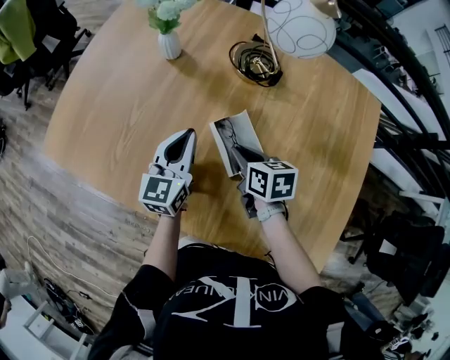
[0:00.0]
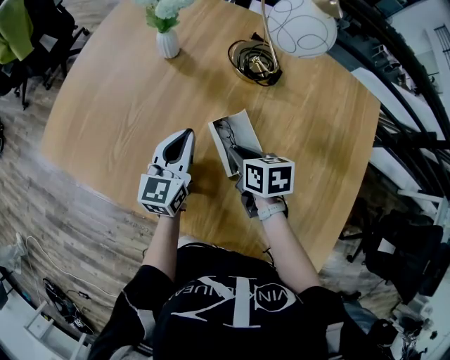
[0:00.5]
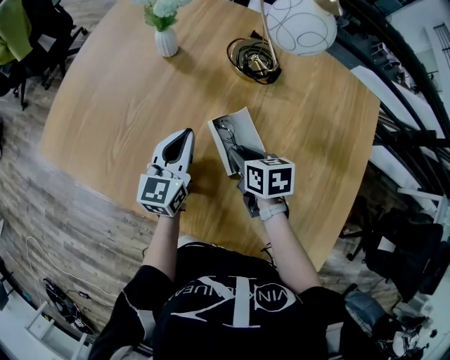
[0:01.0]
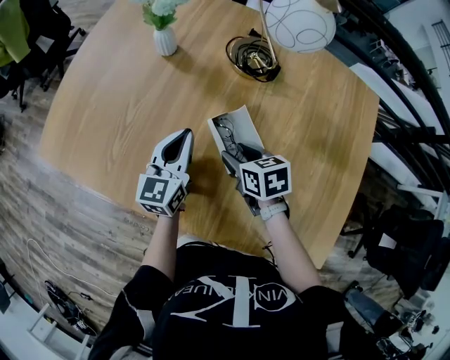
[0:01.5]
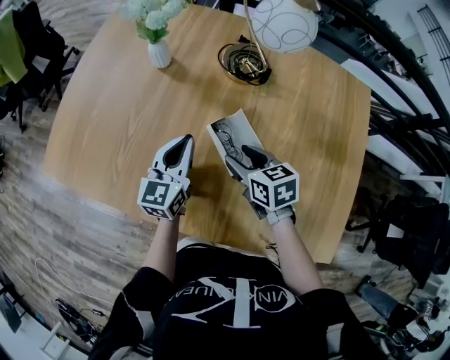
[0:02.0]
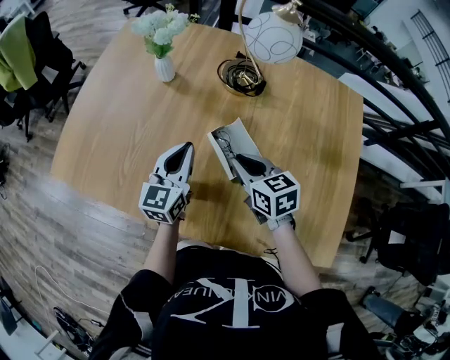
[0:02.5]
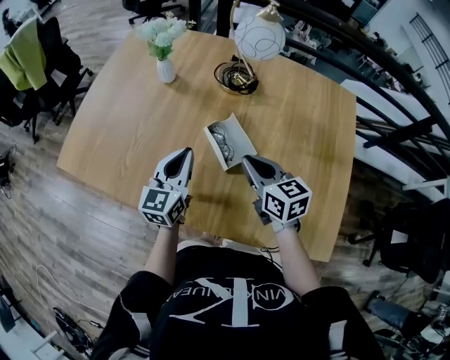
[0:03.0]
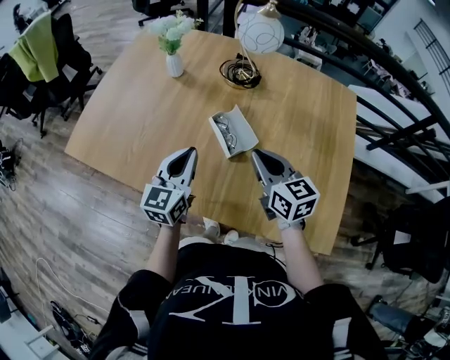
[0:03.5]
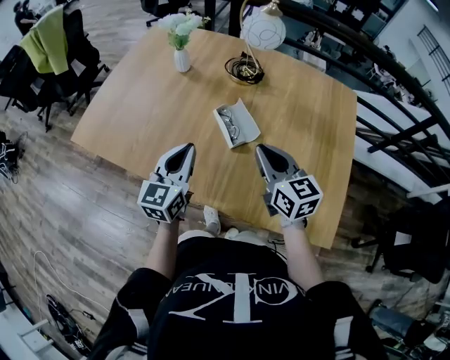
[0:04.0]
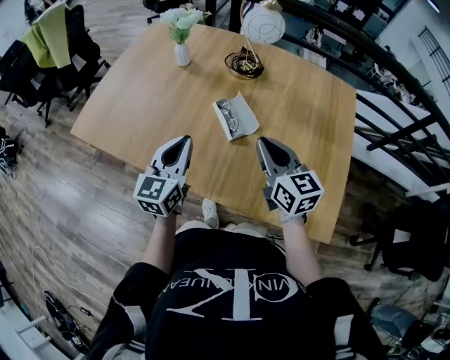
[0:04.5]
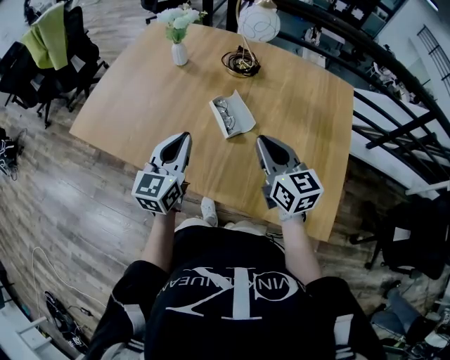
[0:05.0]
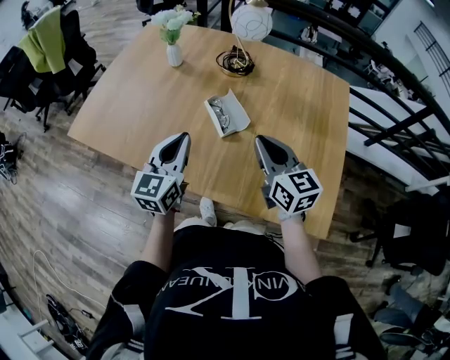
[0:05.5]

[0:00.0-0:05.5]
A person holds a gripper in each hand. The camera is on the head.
0:00.0 to 0:02.0: The right gripper opens up.
0:02.0 to 0:03.5: The right gripper shifts some 15 cm upward and backward, swivels about 30 degrees, and closes its fingers, while the left gripper travels backward and upward by about 15 cm.
0:03.5 to 0:05.5: Both grippers travel together backward, about 5 cm.

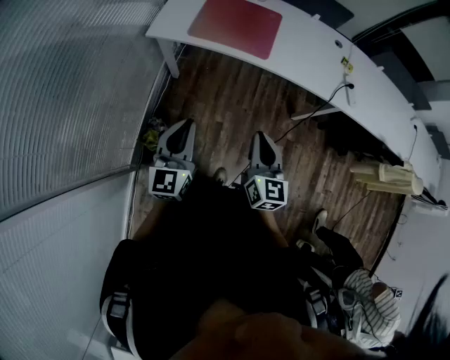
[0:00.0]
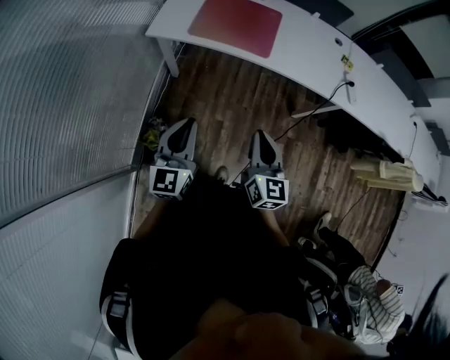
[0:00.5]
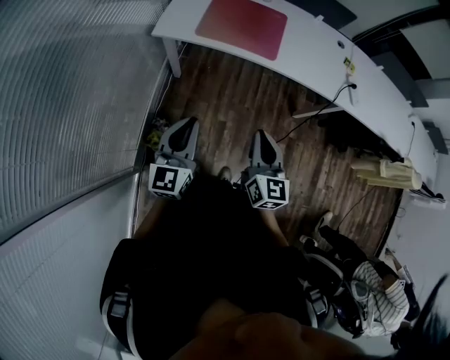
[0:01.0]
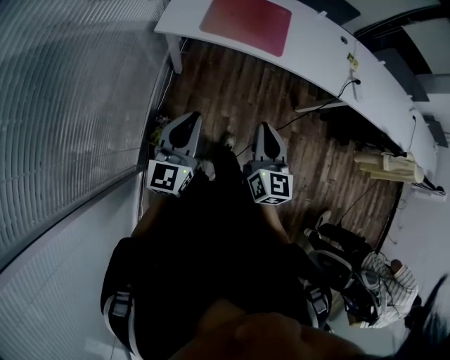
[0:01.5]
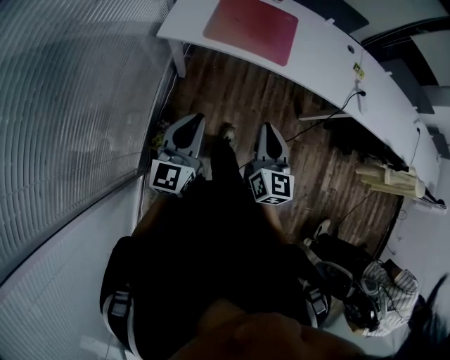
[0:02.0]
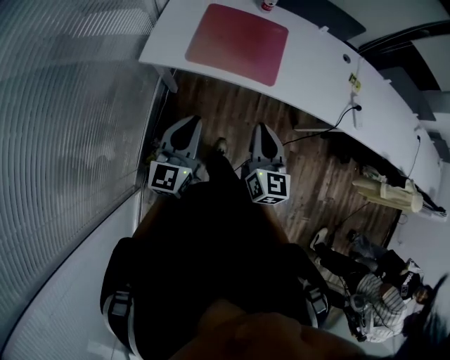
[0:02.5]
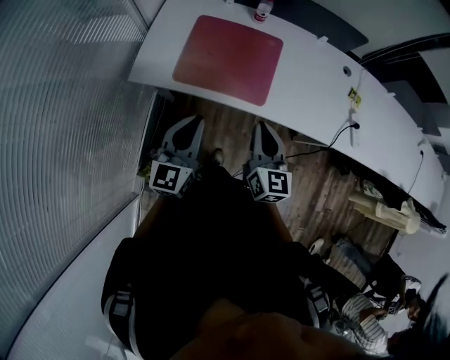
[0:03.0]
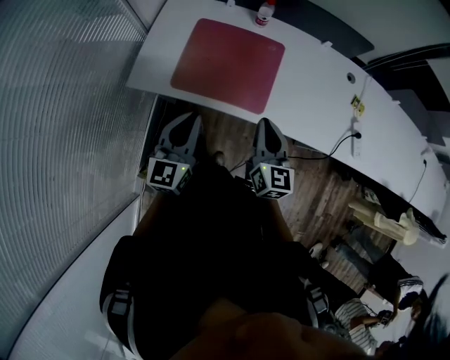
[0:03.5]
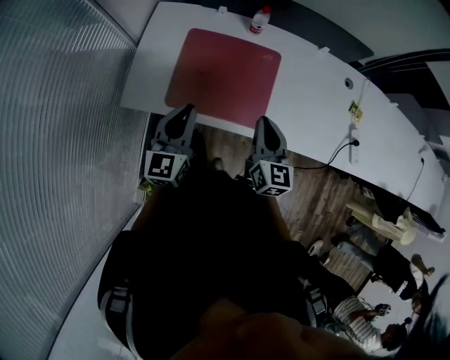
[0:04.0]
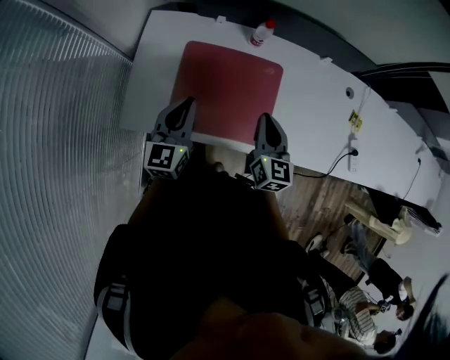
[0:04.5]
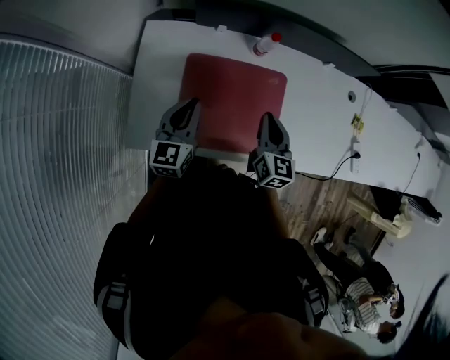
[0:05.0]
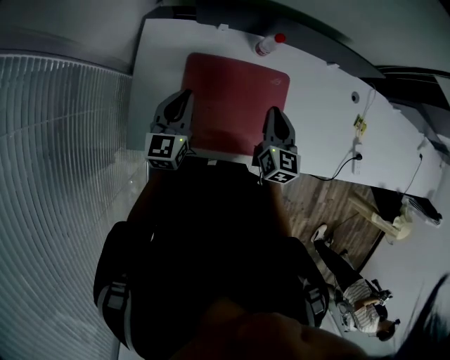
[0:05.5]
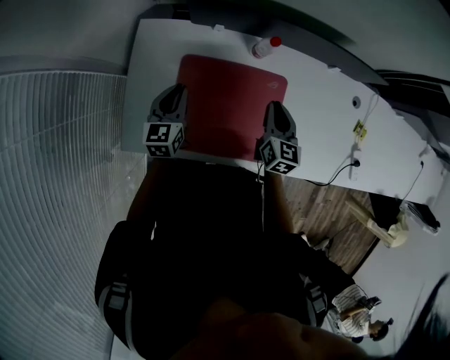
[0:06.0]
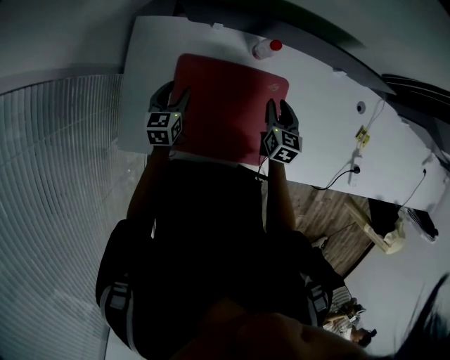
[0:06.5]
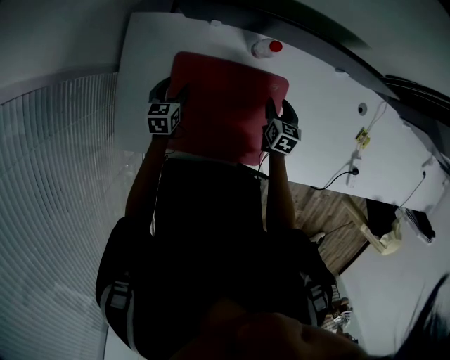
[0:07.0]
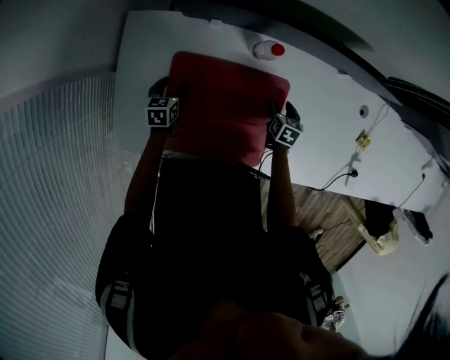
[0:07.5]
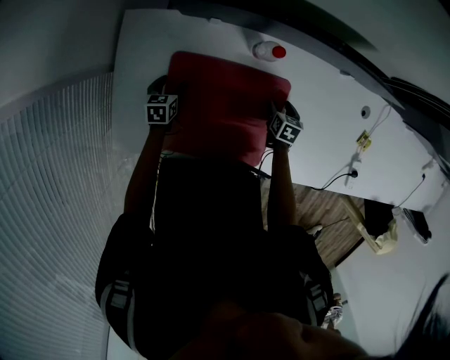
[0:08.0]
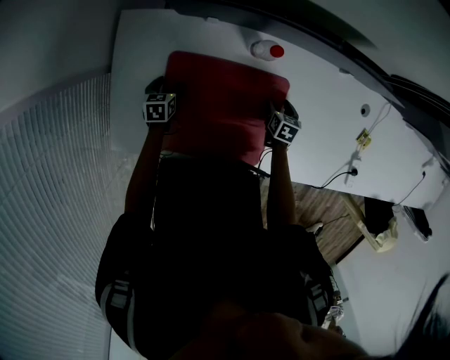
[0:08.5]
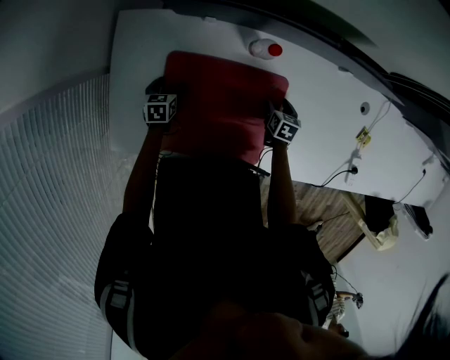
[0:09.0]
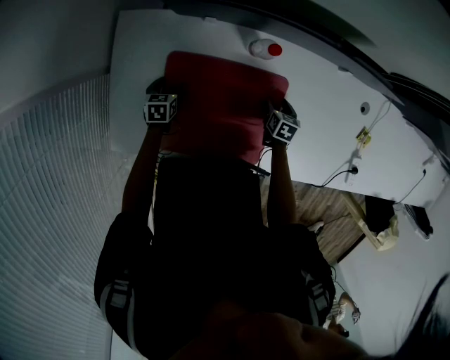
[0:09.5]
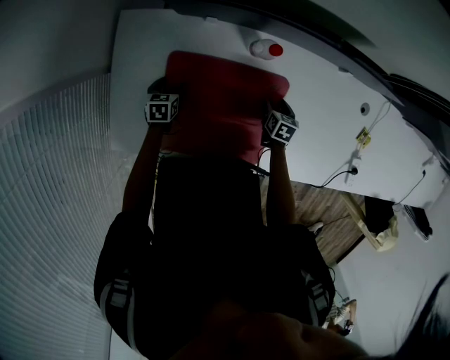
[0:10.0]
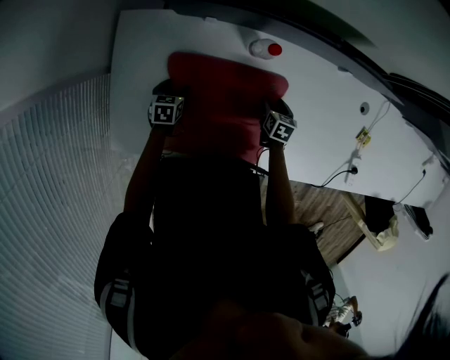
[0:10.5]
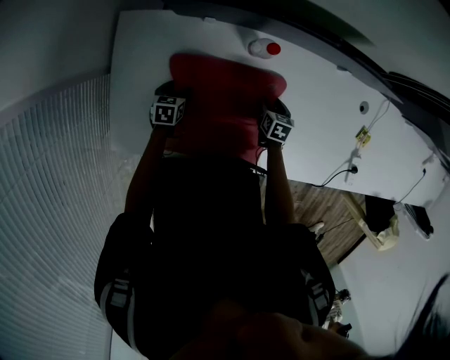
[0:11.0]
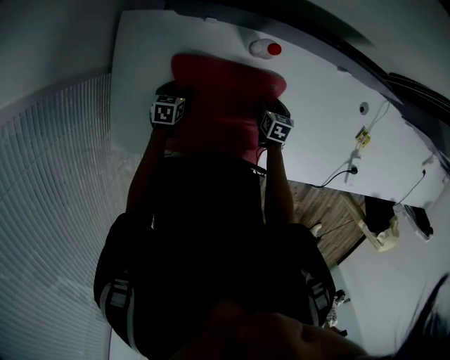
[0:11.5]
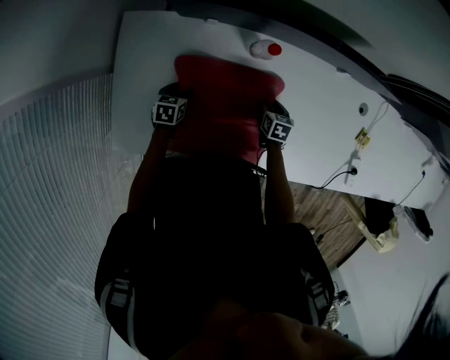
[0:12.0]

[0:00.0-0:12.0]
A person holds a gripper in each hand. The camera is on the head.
0:00.0 to 0:02.0: The grippers both shift to the left and forward by approximately 10 cm.
0:02.0 to 0:04.0: The two grippers travel together, forward, about 40 cm.
0:04.0 to 0:06.0: The left gripper moves forward and downward, roughly 30 cm. Meanwhile the right gripper moves forward, approximately 25 cm.
0:06.0 to 0:08.0: The two grippers go roughly 25 cm downward. The left gripper tilts its fingers roughly 30 degrees downward, and opens its fingers. Meanwhile the right gripper tilts its fingers approximately 40 degrees downward, and opens its fingers.
0:08.0 to 0:12.0: The grippers make only small movements.

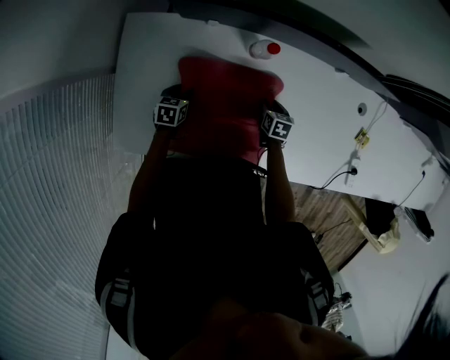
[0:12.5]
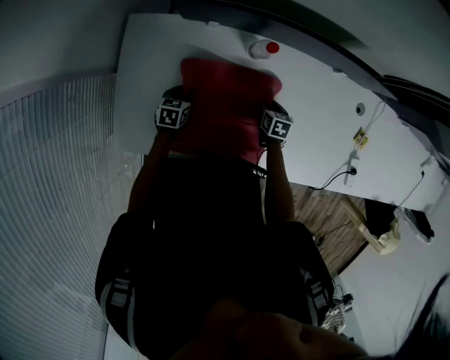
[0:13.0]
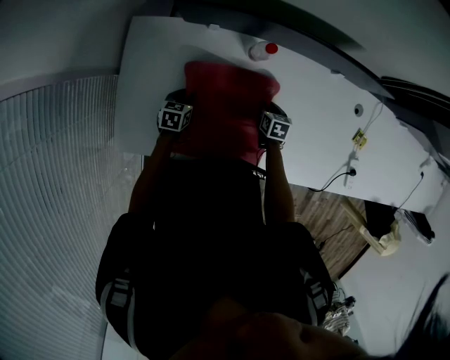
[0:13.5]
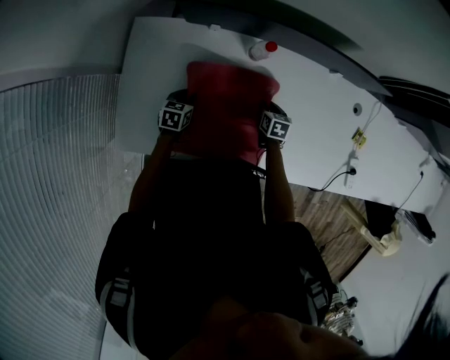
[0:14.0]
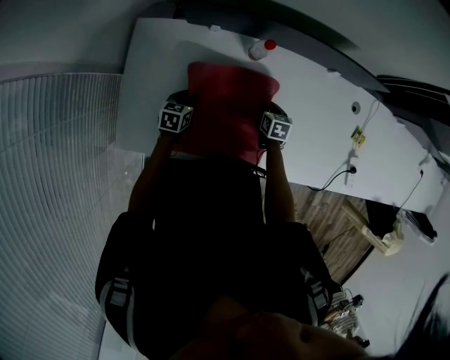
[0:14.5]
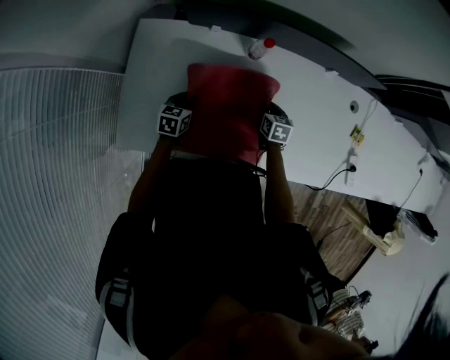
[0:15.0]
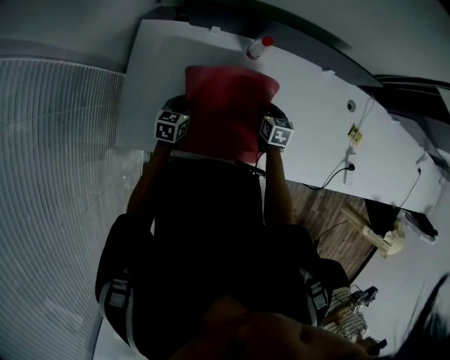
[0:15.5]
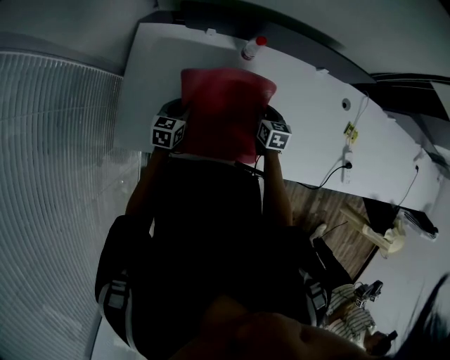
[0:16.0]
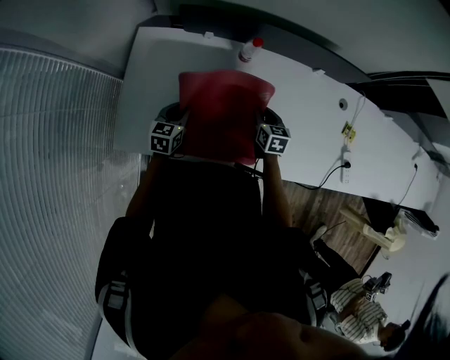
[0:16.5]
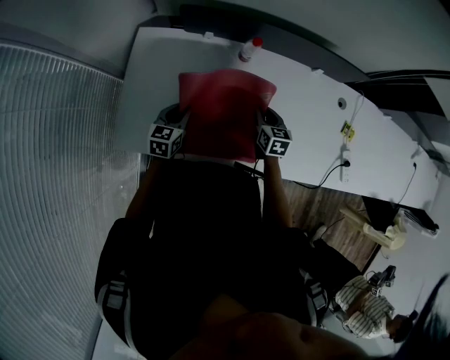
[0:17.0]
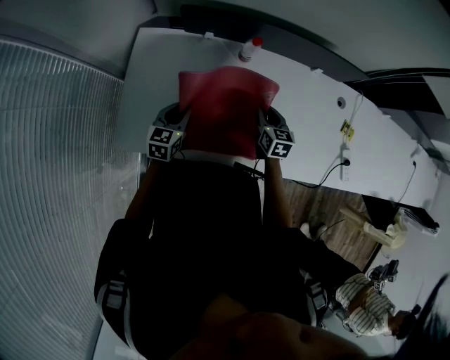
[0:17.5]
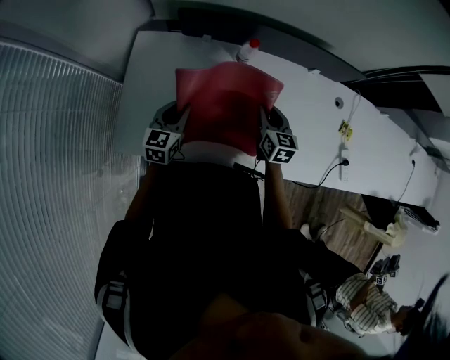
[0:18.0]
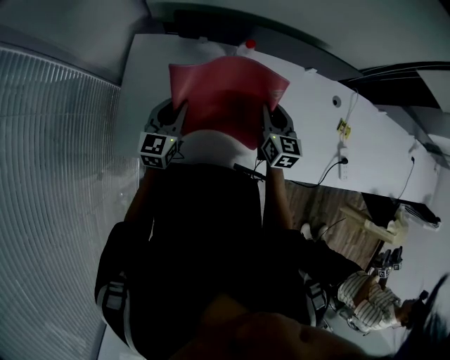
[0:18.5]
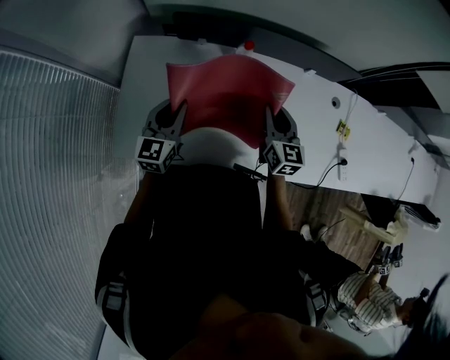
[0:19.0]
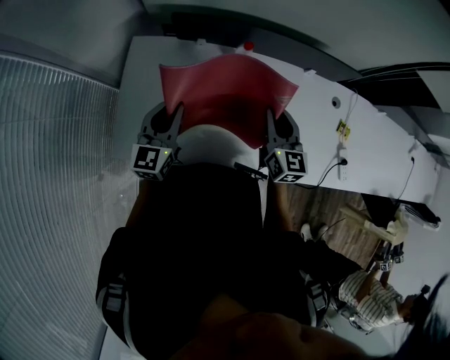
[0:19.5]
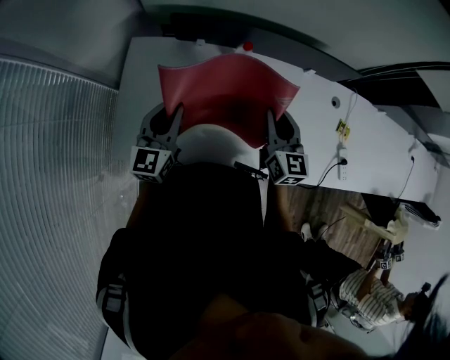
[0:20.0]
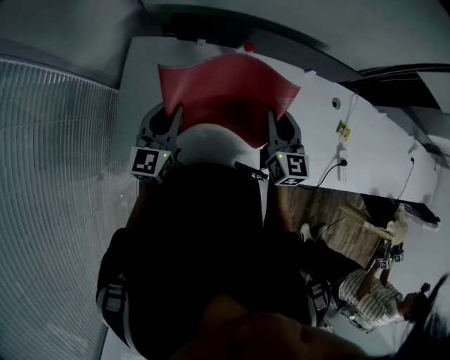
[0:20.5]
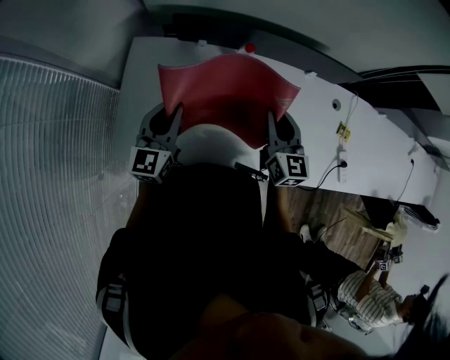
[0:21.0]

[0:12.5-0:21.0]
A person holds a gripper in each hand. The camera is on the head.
0:12.5 to 0:14.5: The left gripper heads upward, covering some 5 cm, while the right gripper ends up some 5 cm from where it was.
0:14.5 to 0:16.5: The right gripper travels upward by roughly 10 cm. The left gripper goes approximately 10 cm upward and backward.
0:16.5 to 0:19.0: Both grippers move upward, approximately 15 cm. The left gripper changes its angle by some 30 degrees. The right gripper turns by some 30 degrees.
0:19.0 to 0:21.0: The left gripper moves upward, roughly 5 cm.

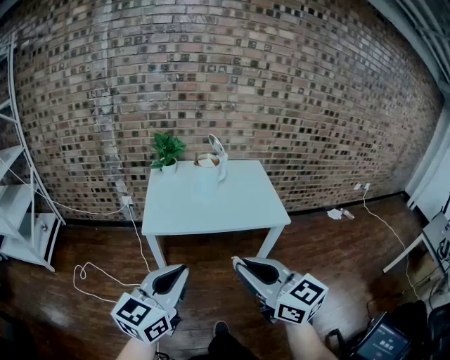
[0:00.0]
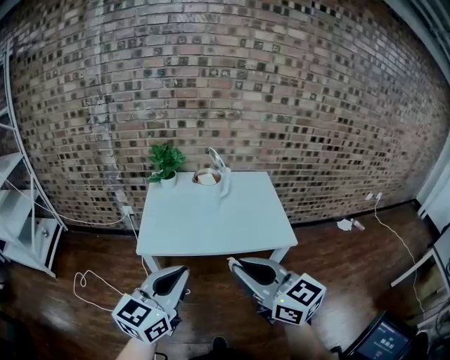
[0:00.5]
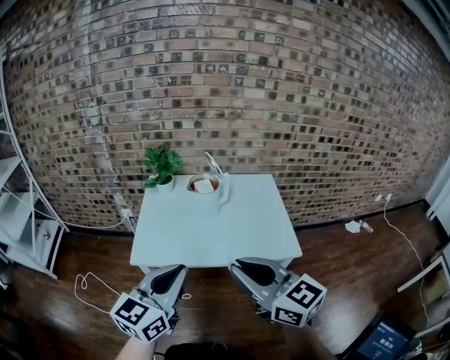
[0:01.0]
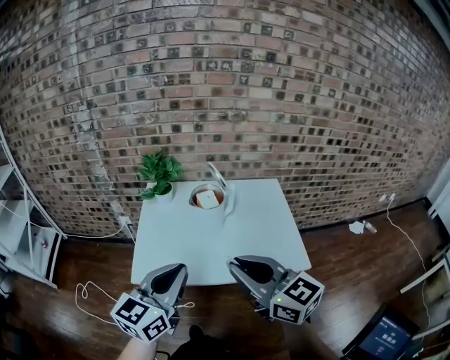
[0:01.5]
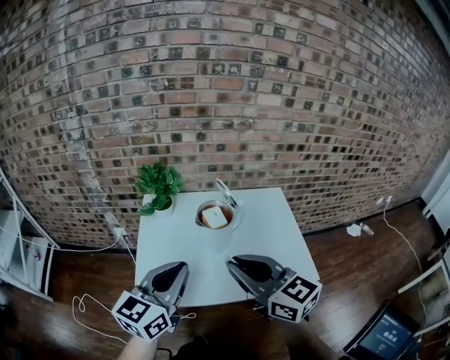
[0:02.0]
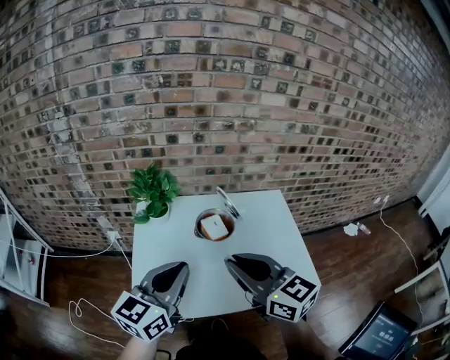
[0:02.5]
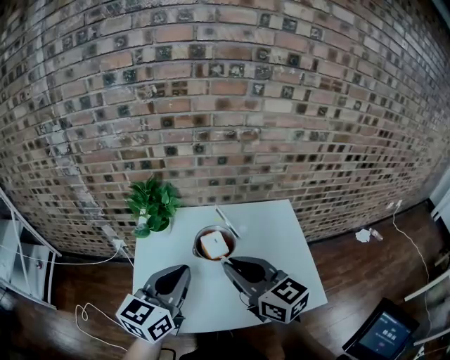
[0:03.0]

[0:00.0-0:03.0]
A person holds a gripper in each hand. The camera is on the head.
0:00.0 to 0:01.5: Both grippers travel together forward, about 30 cm.
0:01.5 to 0:03.0: The two grippers go roughly 20 cm forward.
